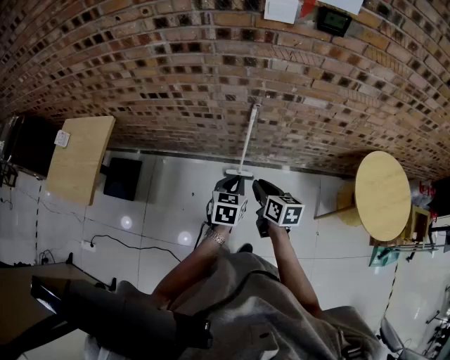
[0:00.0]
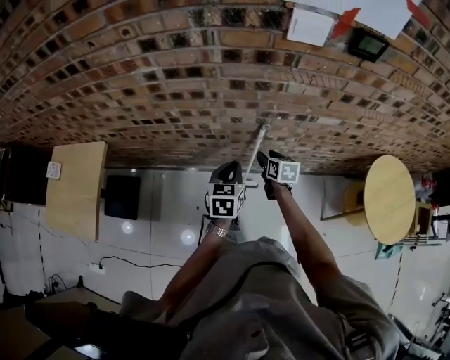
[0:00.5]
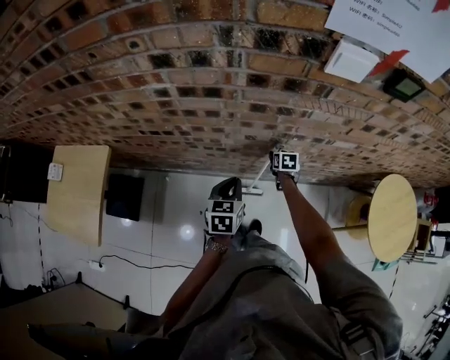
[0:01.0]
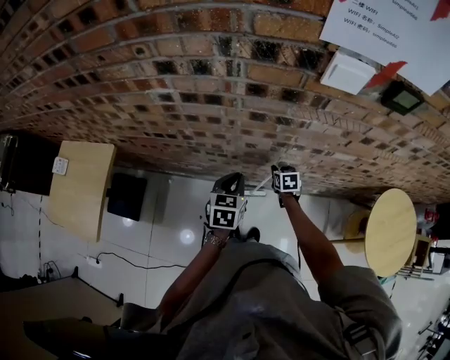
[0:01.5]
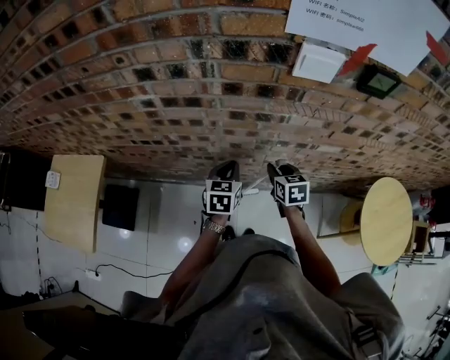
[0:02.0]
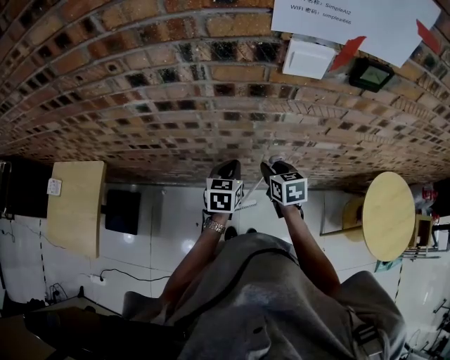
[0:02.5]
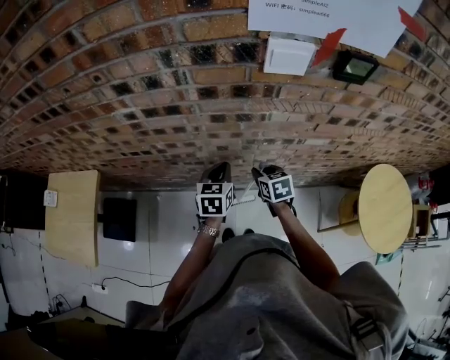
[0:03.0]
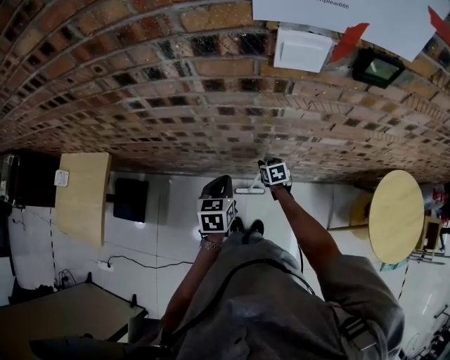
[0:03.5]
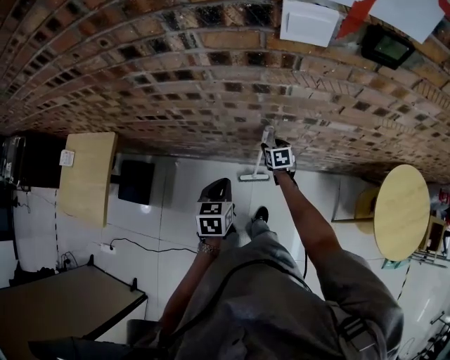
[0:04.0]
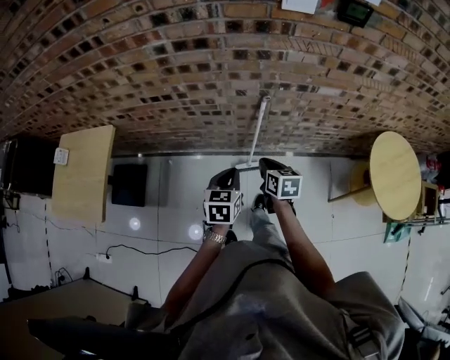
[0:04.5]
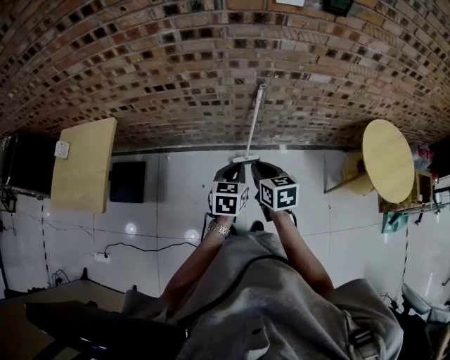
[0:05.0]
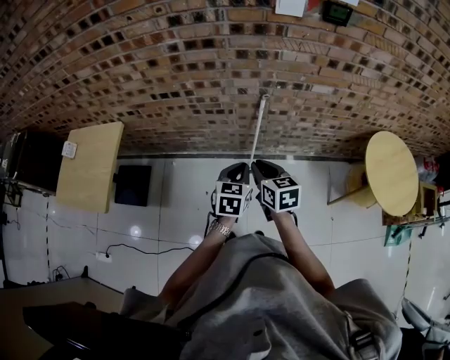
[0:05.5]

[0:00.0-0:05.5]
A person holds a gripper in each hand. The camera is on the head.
0:00.0 to 0:02.0: The two grippers go about 30 cm forward. The right gripper changes its angle by some 30 degrees, and opens, then closes once more.
0:02.0 to 0:03.5: The right gripper moves downward, approximately 20 cm. Meanwhile the left gripper shifts about 5 cm backward.
0:03.5 to 0:05.5: The left gripper travels backward by some 25 cm; the right gripper shifts roughly 40 cm backward and upward, swivels approximately 20 degrees, and opens, then closes again.

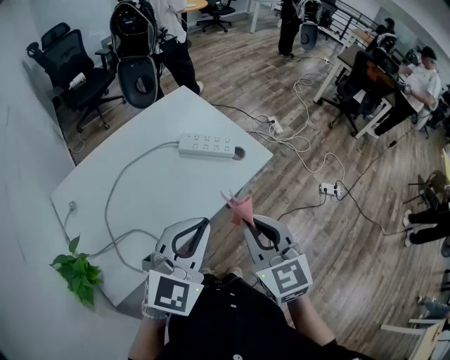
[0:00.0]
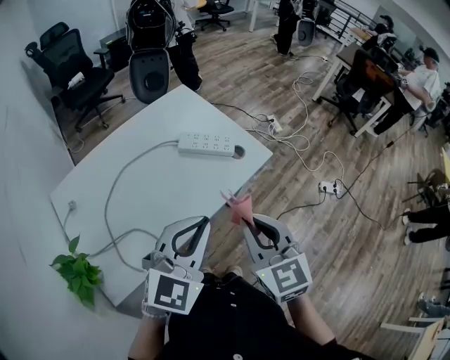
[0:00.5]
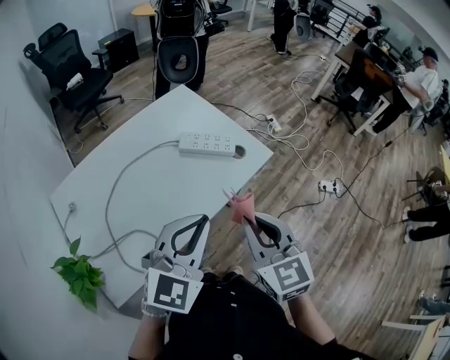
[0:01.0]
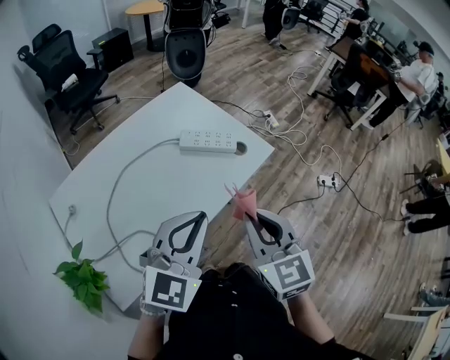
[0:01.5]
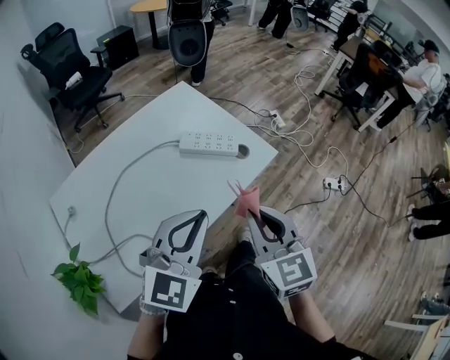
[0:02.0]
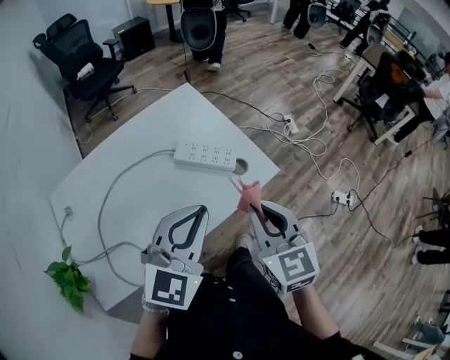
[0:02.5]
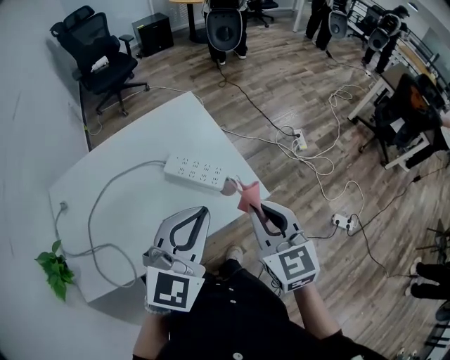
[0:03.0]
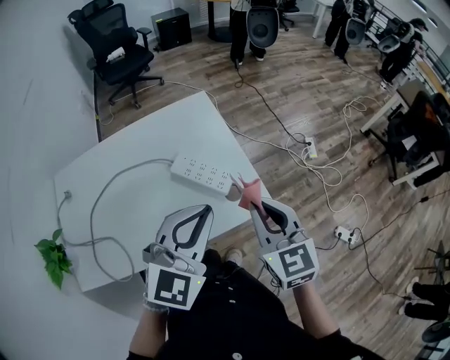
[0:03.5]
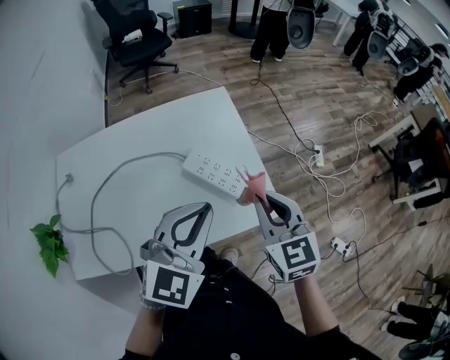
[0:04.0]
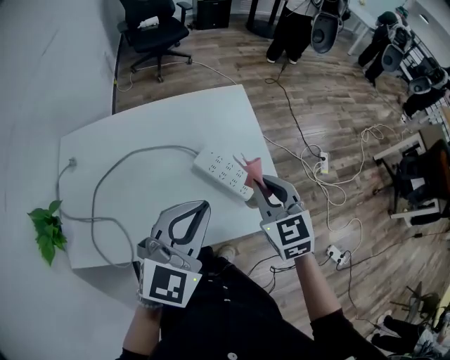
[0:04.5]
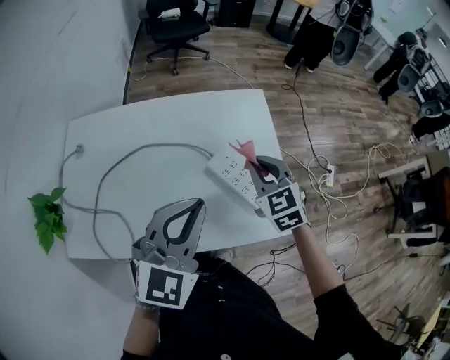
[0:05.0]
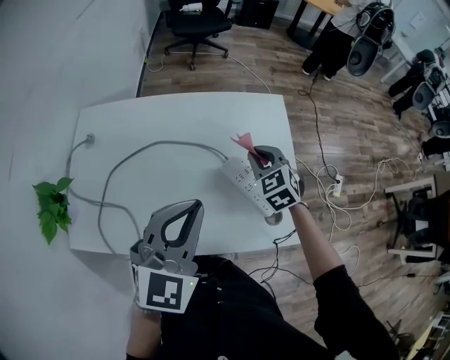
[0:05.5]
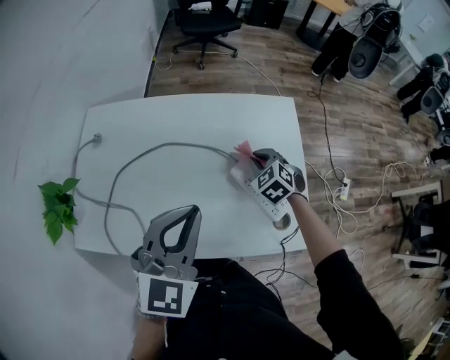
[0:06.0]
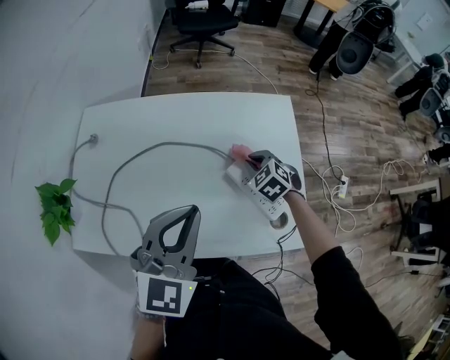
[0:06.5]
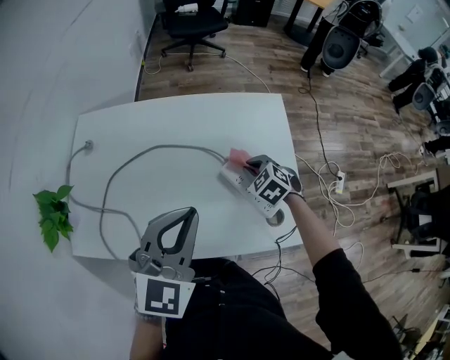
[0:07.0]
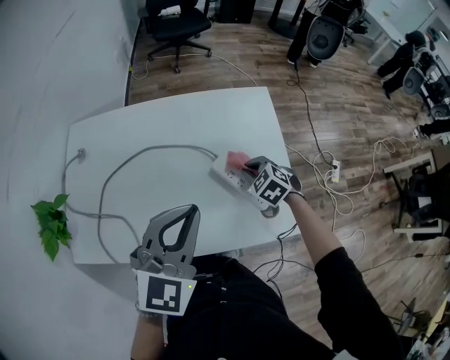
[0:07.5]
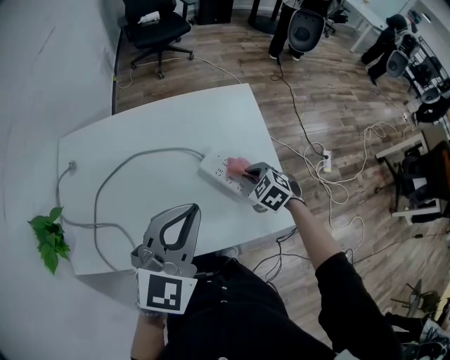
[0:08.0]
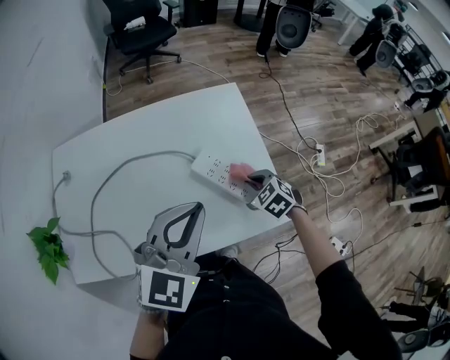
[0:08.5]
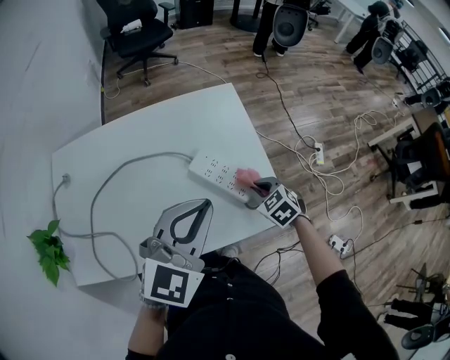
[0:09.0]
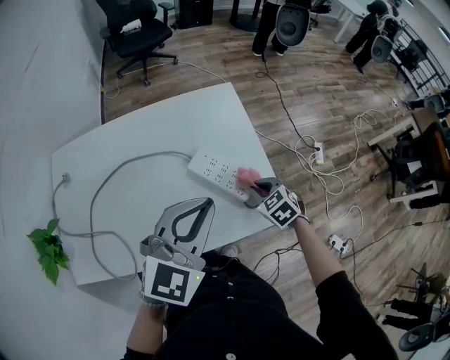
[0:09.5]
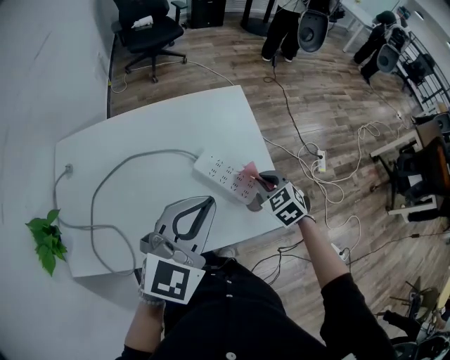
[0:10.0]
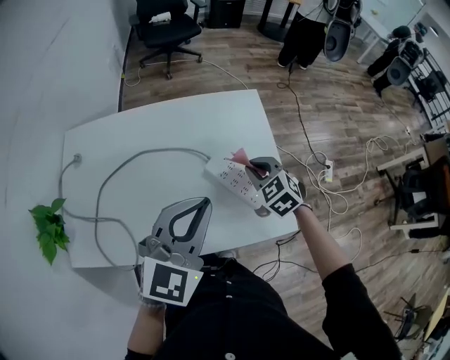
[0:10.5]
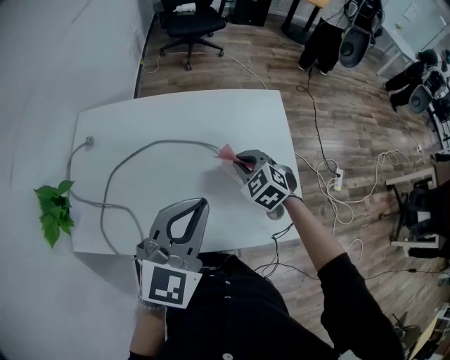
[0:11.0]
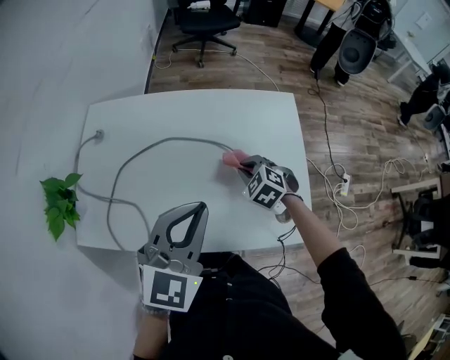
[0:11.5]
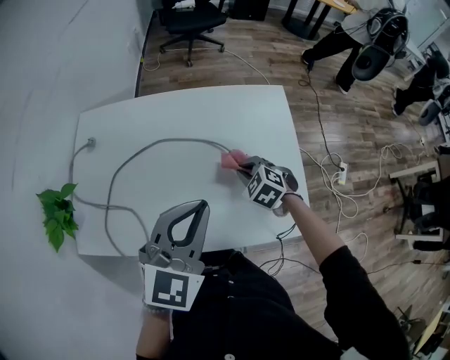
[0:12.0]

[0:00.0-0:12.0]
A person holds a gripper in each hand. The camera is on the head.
0:00.0 to 0:02.0: The grippers move only a little.
0:02.0 to 0:04.0: Both grippers move forward and to the right, roughly 25 cm. The left gripper rotates some 20 degrees; the right gripper swivels approximately 30 degrees.
0:04.0 to 0:06.0: The left gripper goes some 15 cm to the left, and rotates some 20 degrees; the right gripper moves forward, downward and to the left, roughly 35 cm, and swivels about 50 degrees.
0:06.0 to 0:08.0: The right gripper heads backward and to the right, covering approximately 15 cm; the left gripper goes roughly 5 cm to the right.
0:08.0 to 0:10.0: The left gripper shifts by some 5 cm. Meanwhile the right gripper is displaced to the right by about 5 cm.
0:10.0 to 0:12.0: The right gripper heads to the left, covering approximately 15 cm, and rotates about 30 degrees. The left gripper goes roughly 10 cm to the left.

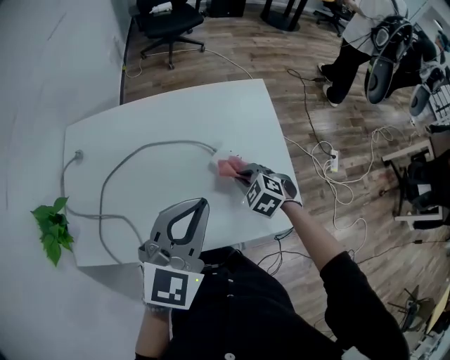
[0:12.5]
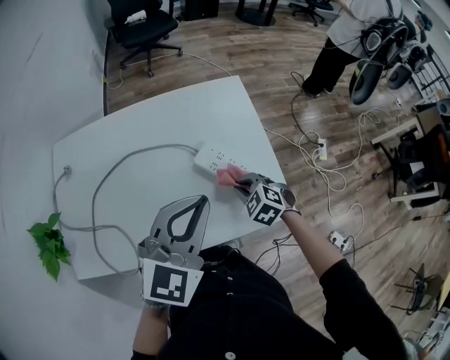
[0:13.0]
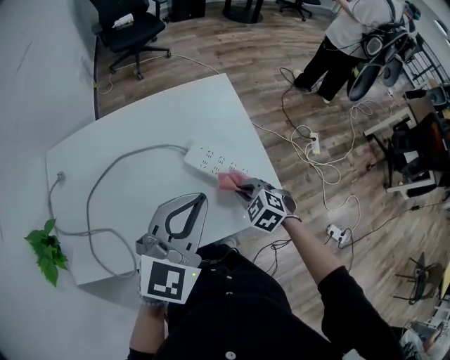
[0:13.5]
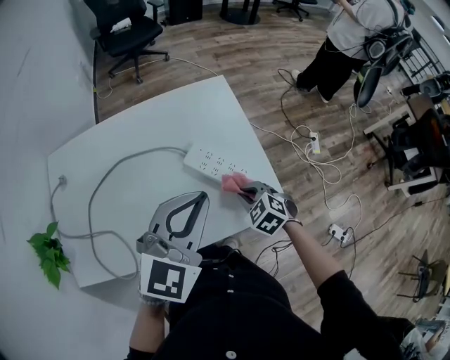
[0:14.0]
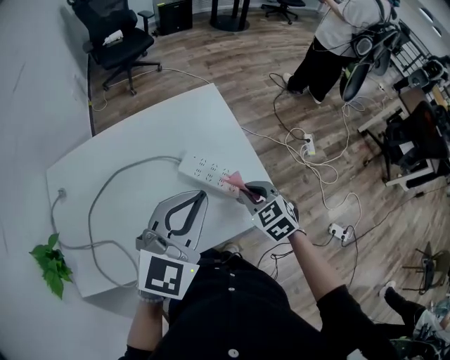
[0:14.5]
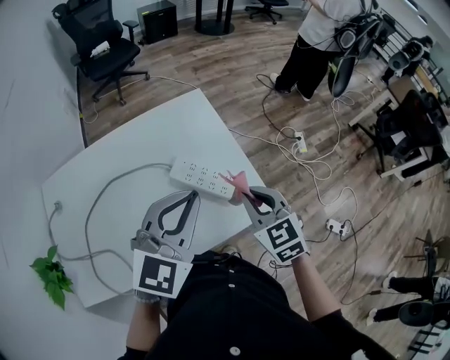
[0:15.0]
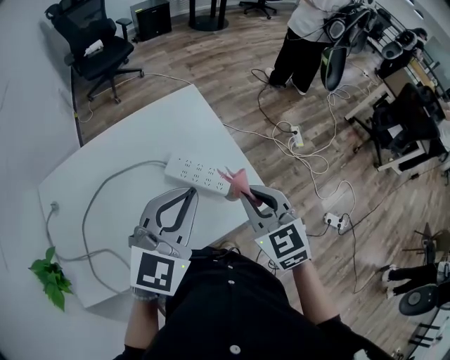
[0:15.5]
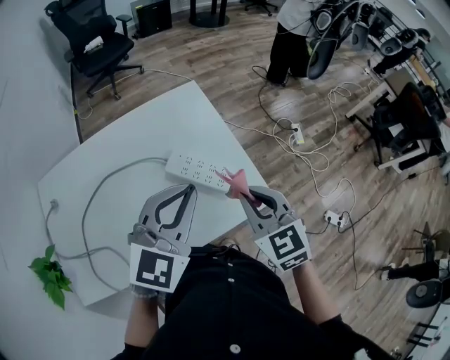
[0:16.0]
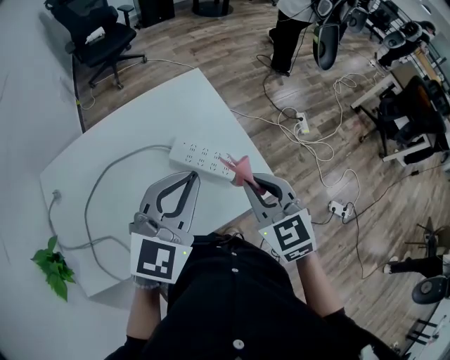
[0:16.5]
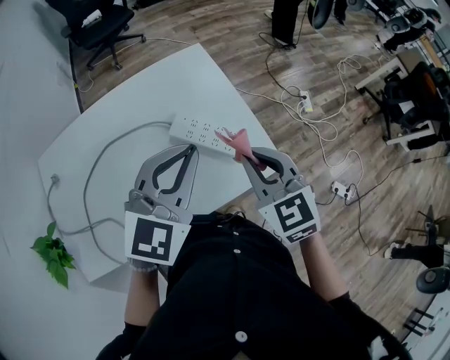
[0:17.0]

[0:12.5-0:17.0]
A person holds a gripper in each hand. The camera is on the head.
0:12.5 to 0:14.5: The left gripper travels to the right by roughly 10 cm; the right gripper is displaced to the right, upward and backward by some 15 cm, and swivels some 30 degrees.
0:14.5 to 0:17.0: The right gripper heads upward, covering roughly 10 cm, and rotates roughly 20 degrees.

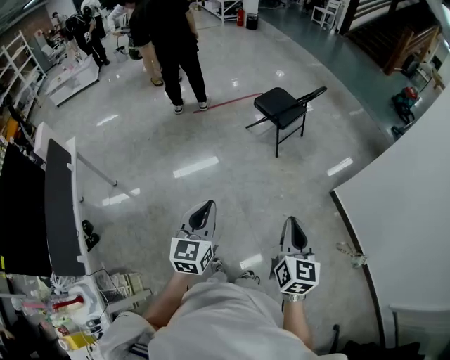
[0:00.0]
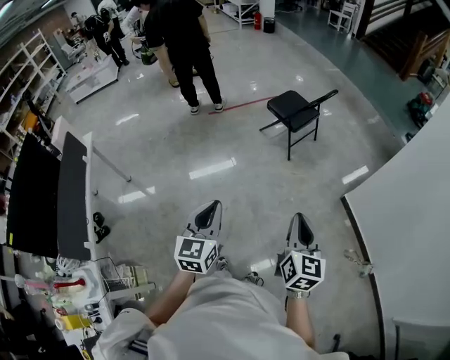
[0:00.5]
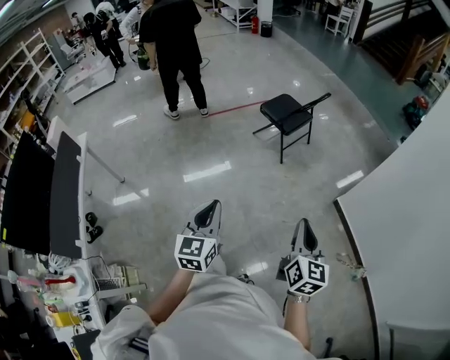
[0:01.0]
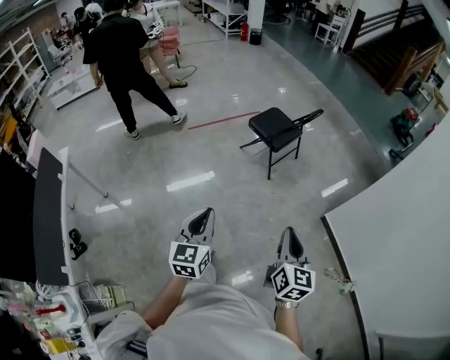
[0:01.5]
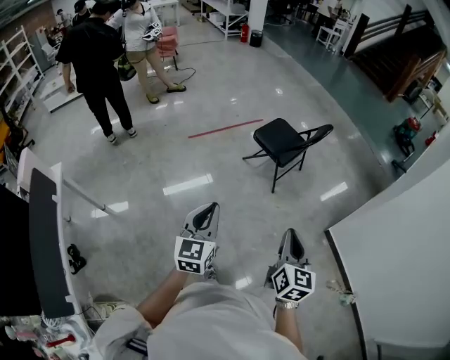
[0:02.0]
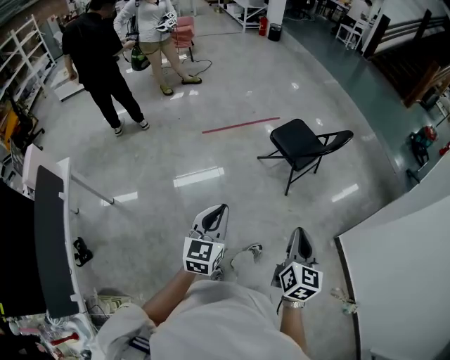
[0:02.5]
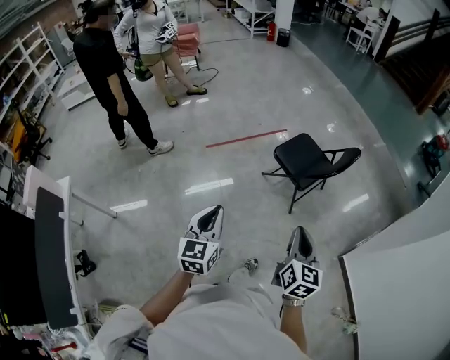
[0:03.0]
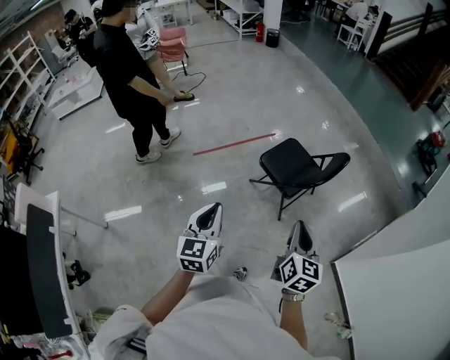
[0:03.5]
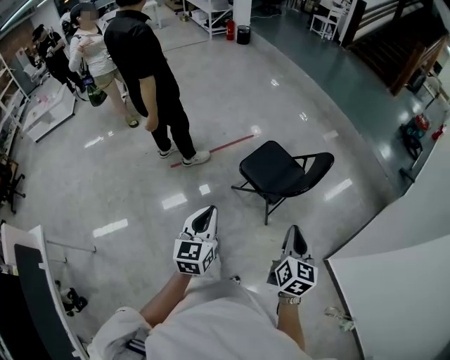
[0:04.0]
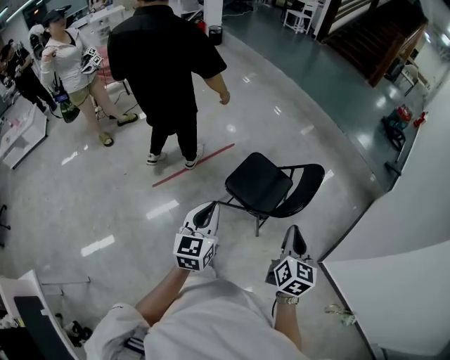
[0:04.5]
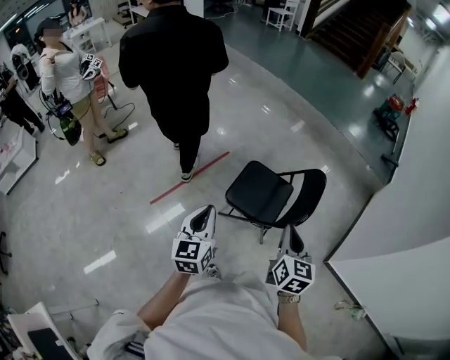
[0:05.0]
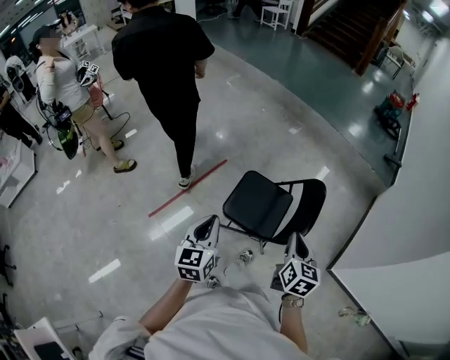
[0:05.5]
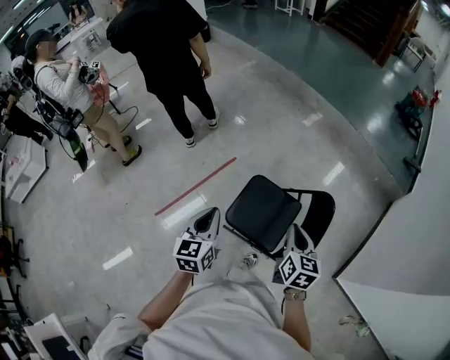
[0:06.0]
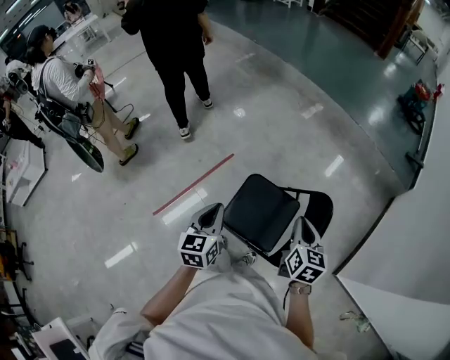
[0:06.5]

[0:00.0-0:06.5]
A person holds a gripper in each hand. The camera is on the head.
0:00.0 to 0:02.0: The grippers both shift forward by roughly 25 cm.
0:02.0 to 0:04.5: The two grippers travel together, forward, roughly 60 cm.
0:04.5 to 0:06.5: Both grippers travel together forward, some 35 cm.
